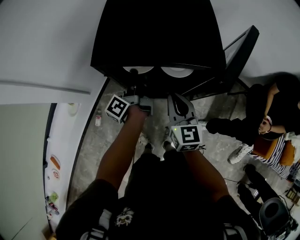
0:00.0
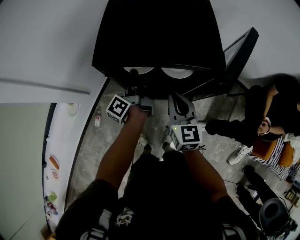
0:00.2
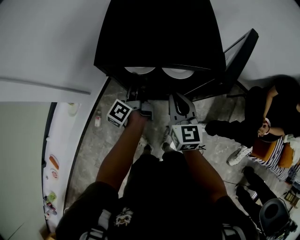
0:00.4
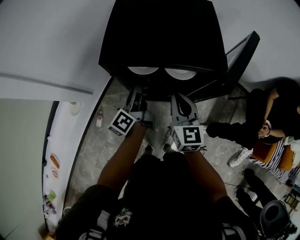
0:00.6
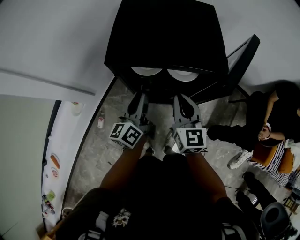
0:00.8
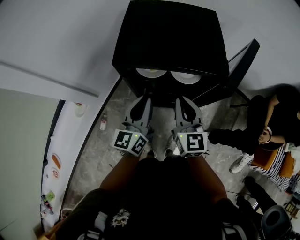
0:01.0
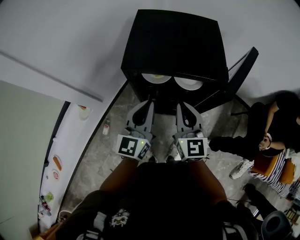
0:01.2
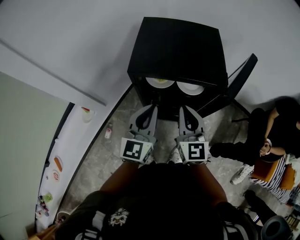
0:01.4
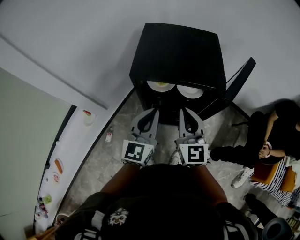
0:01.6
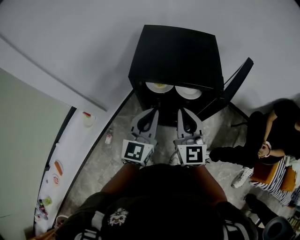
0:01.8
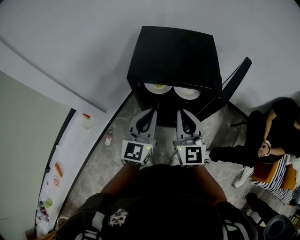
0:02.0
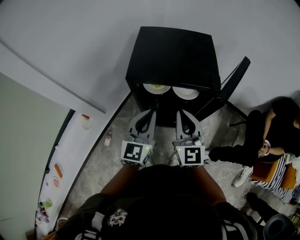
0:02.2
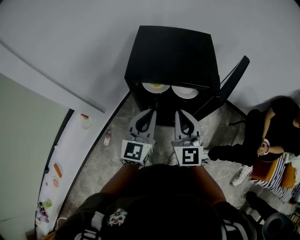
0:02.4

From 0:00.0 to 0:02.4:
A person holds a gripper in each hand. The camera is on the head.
From 0:00.0 to 0:01.2: The left gripper shifts about 20 cm upward and backward, rolls clockwise, seen from behind, by about 70 degrees, and opens, then closes once more, while the right gripper moves upward, roughly 10 cm.
From 0:01.2 to 0:02.4: The right gripper moves upward, roughly 5 cm.

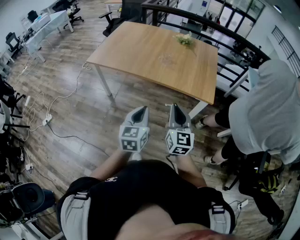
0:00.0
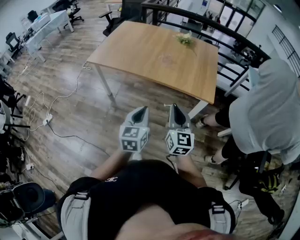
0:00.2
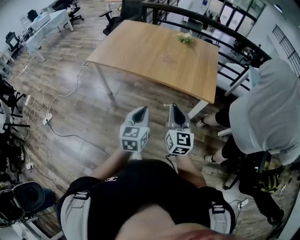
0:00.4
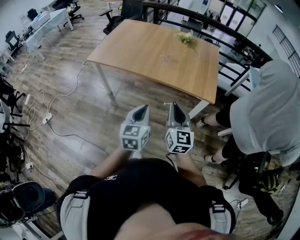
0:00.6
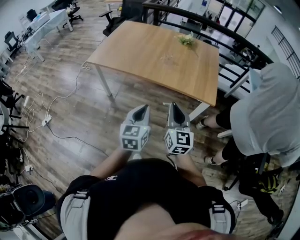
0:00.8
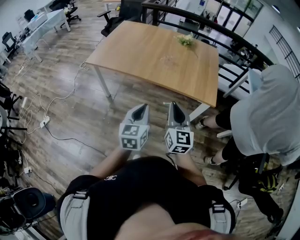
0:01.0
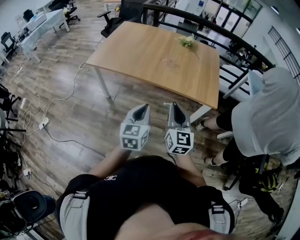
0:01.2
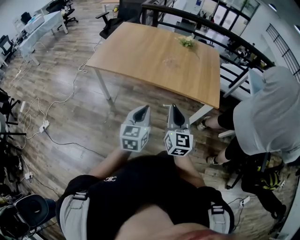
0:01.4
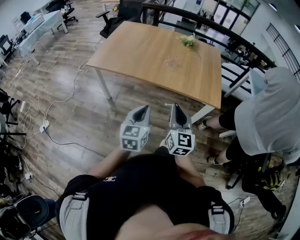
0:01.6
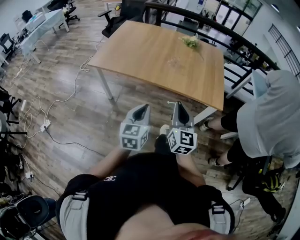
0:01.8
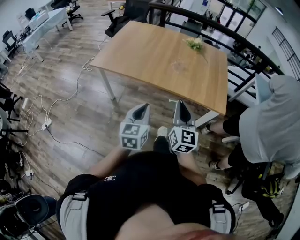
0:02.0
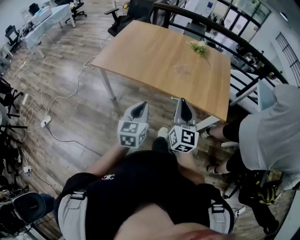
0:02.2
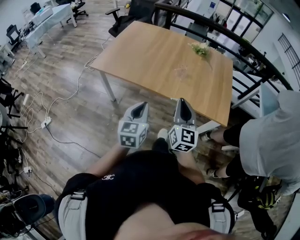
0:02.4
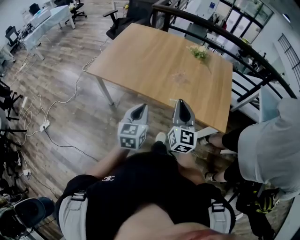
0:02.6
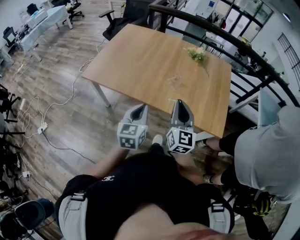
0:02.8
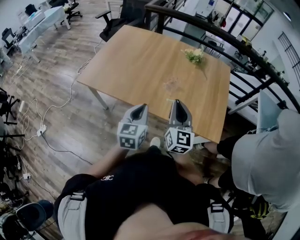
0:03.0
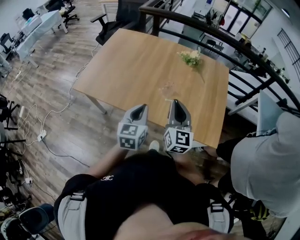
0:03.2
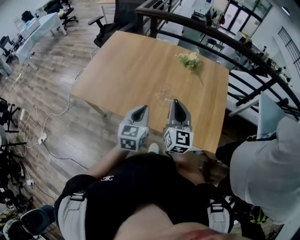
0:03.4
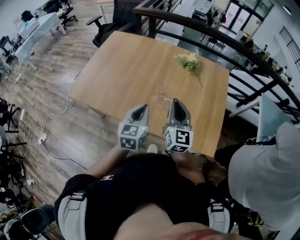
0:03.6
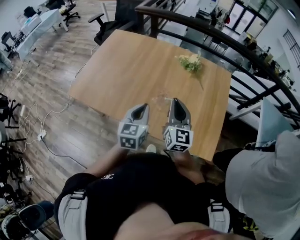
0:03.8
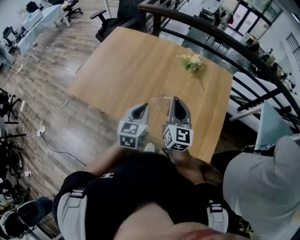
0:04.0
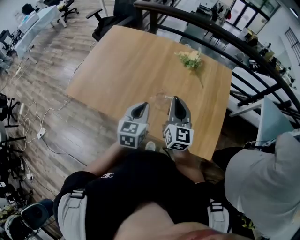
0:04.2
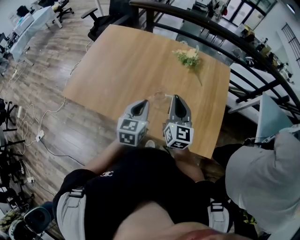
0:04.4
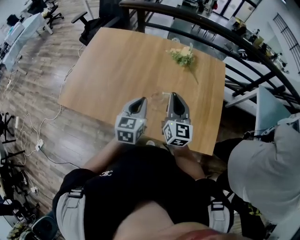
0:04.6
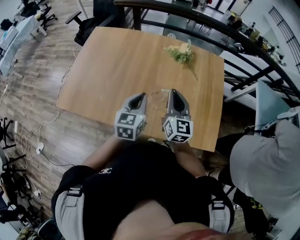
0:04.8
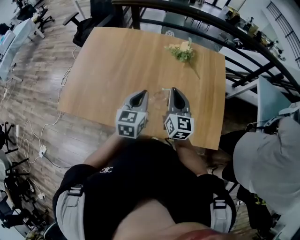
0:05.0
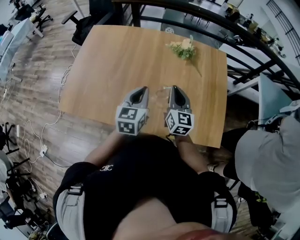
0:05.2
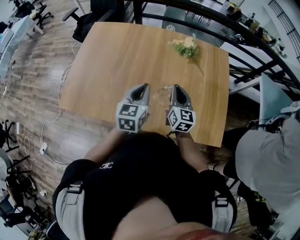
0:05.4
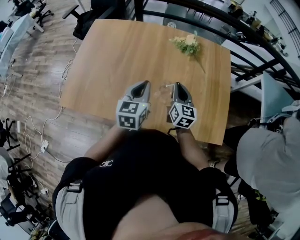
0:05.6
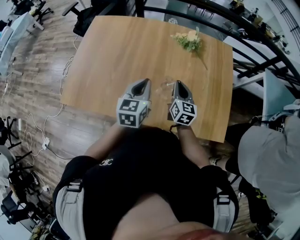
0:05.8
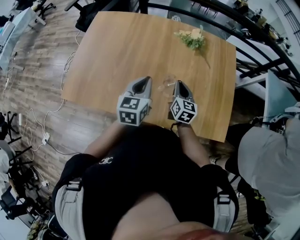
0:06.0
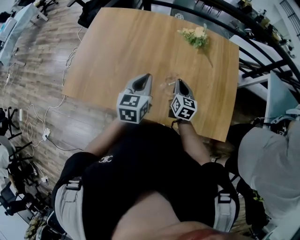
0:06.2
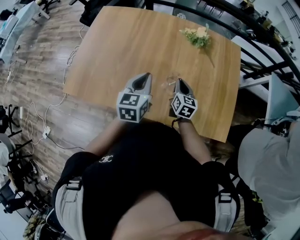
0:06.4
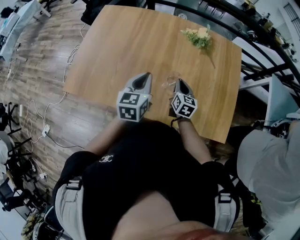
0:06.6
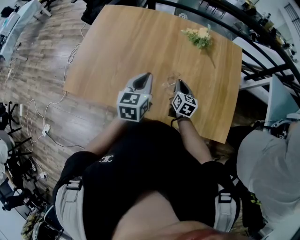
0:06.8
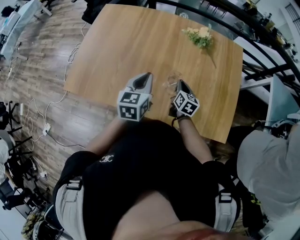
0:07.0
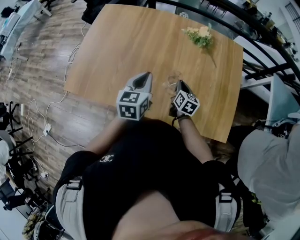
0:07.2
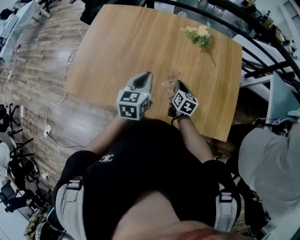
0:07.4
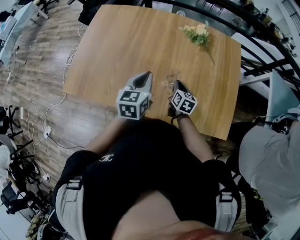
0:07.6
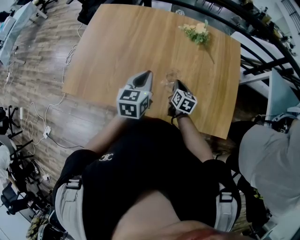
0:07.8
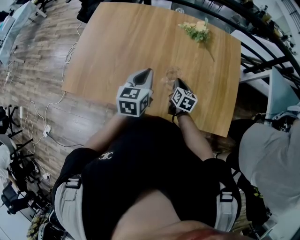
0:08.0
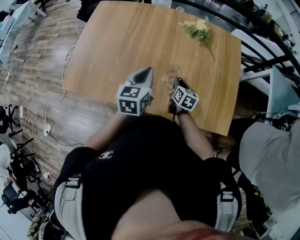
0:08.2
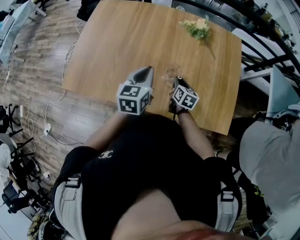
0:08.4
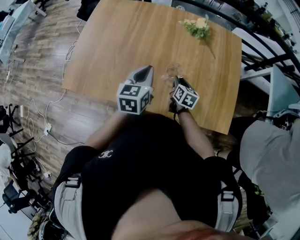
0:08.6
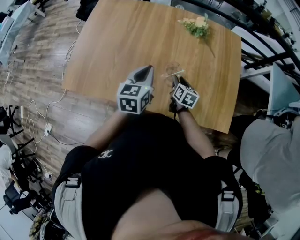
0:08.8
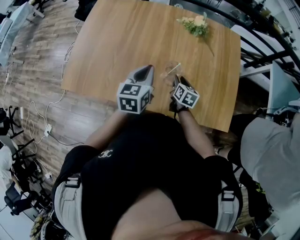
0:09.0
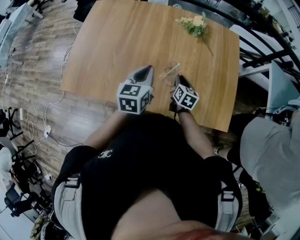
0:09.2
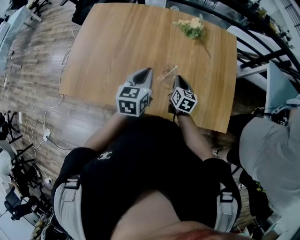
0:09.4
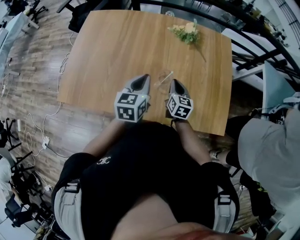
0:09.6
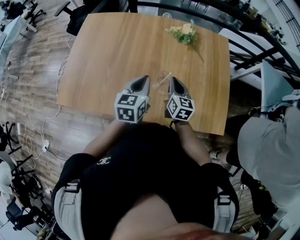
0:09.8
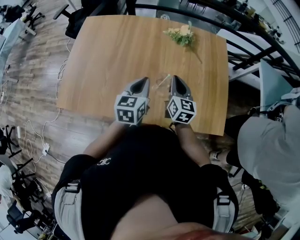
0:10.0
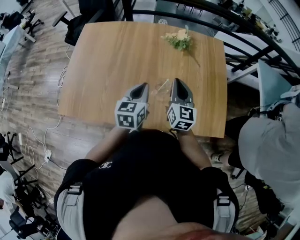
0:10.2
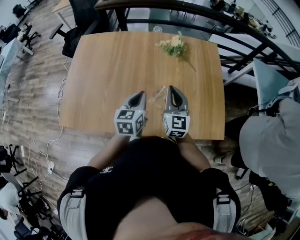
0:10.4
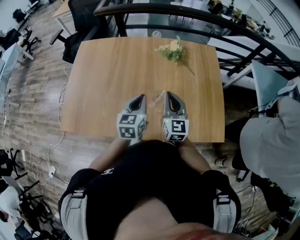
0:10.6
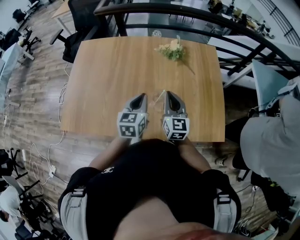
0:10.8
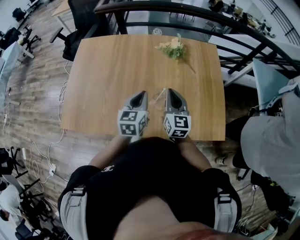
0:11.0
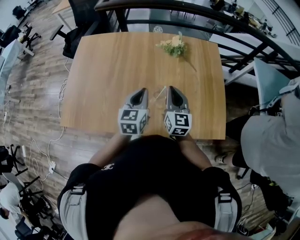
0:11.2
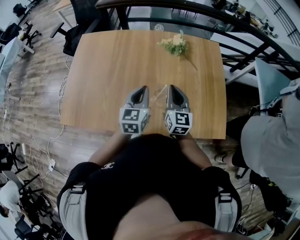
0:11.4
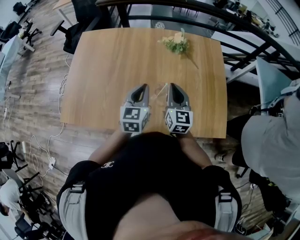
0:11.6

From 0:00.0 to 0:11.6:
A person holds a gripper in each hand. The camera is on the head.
From 0:00.0 to 0:01.4: The right gripper shifts some 10 cm to the left. Meanwhile the left gripper heads to the left and forward, covering roughly 10 cm.
From 0:01.4 to 0:02.8: The two grippers go about 25 cm forward.
From 0:02.8 to 0:04.4: The right gripper heads forward, covering some 25 cm, while the left gripper goes some 25 cm forward and to the right.
From 0:04.4 to 0:05.8: The left gripper shifts some 10 cm forward and to the left, while the right gripper goes some 15 cm downward and forward.
From 0:05.8 to 0:07.2: The right gripper shifts some 10 cm downward.
From 0:07.2 to 0:08.8: The right gripper opens.
From 0:08.8 to 0:10.2: The right gripper travels upward by approximately 20 cm, swivels some 40 degrees, and closes up.
From 0:10.2 to 0:11.6: There are only small adjustments of the grippers.

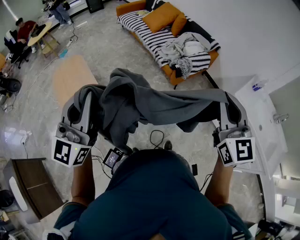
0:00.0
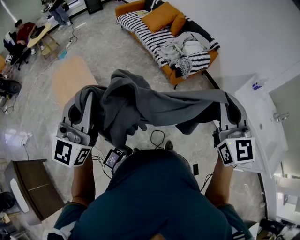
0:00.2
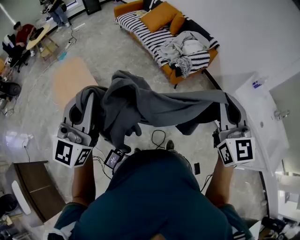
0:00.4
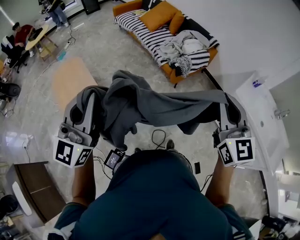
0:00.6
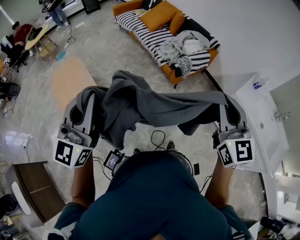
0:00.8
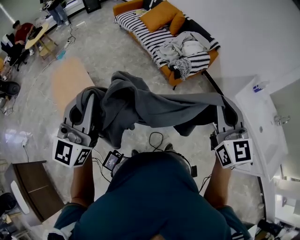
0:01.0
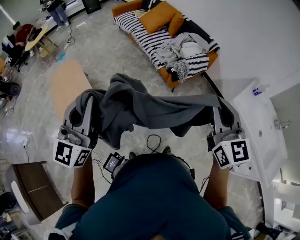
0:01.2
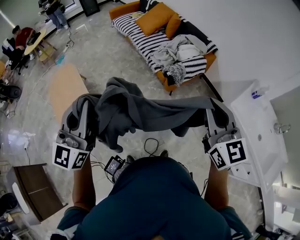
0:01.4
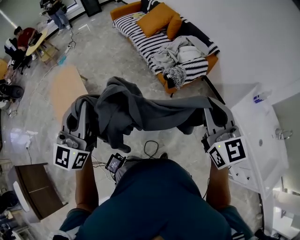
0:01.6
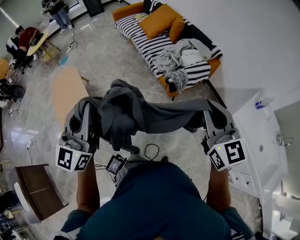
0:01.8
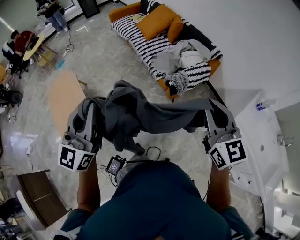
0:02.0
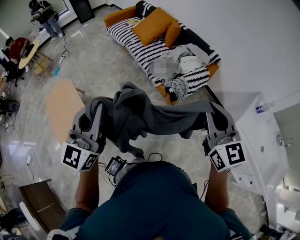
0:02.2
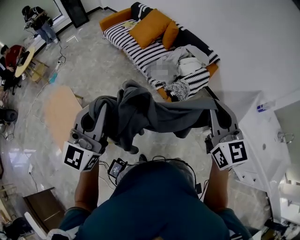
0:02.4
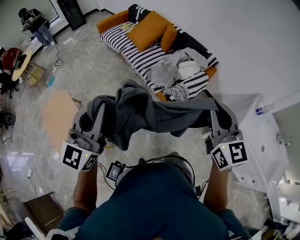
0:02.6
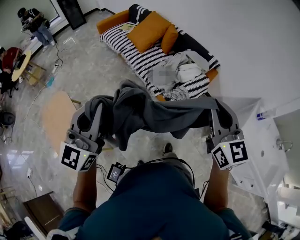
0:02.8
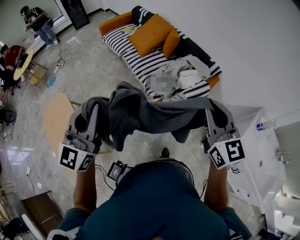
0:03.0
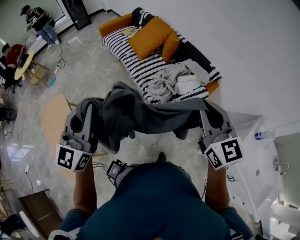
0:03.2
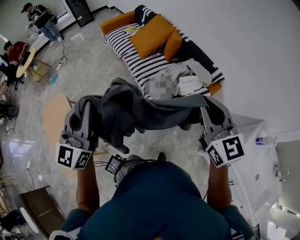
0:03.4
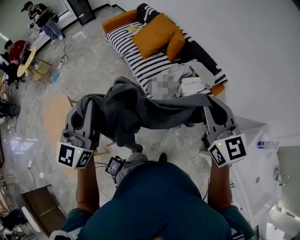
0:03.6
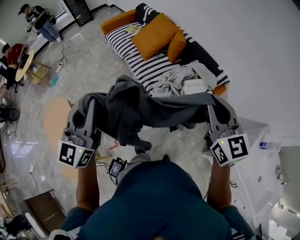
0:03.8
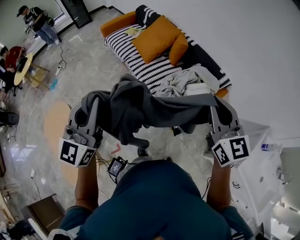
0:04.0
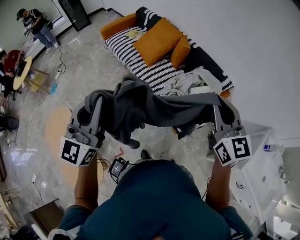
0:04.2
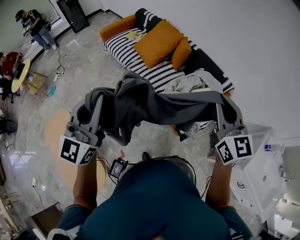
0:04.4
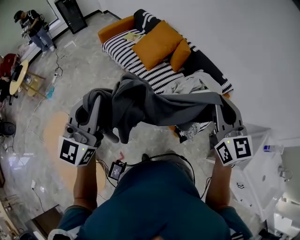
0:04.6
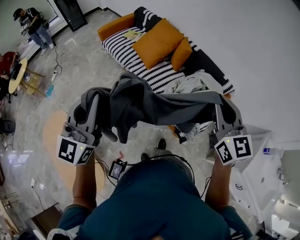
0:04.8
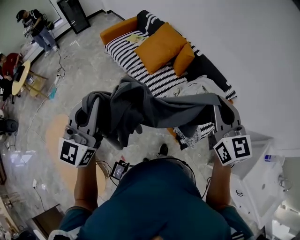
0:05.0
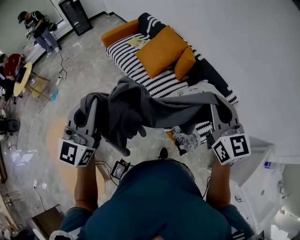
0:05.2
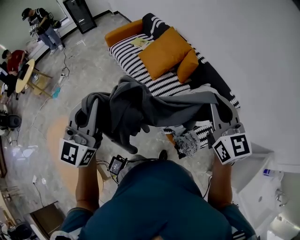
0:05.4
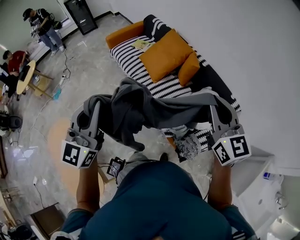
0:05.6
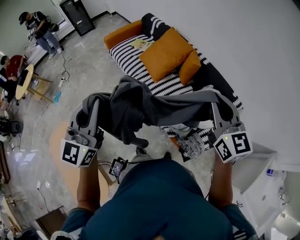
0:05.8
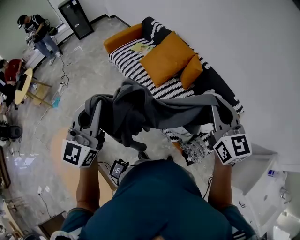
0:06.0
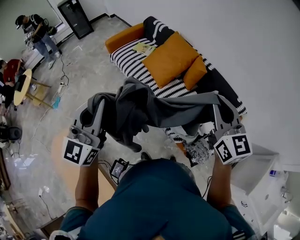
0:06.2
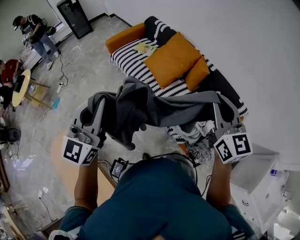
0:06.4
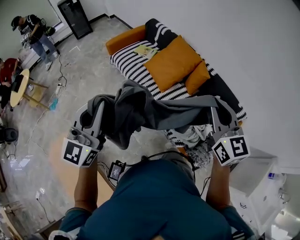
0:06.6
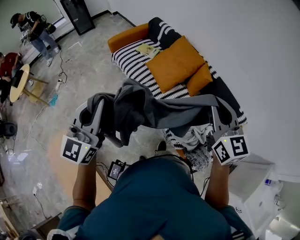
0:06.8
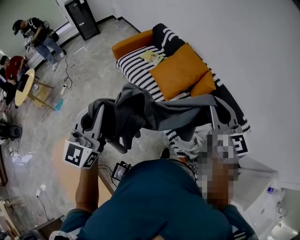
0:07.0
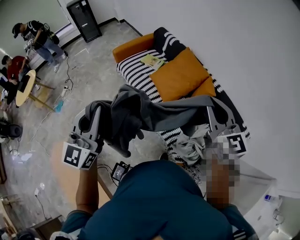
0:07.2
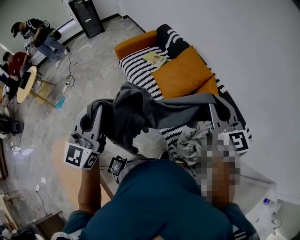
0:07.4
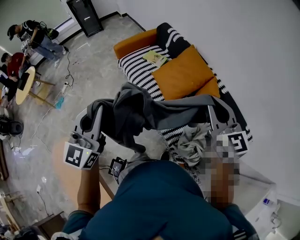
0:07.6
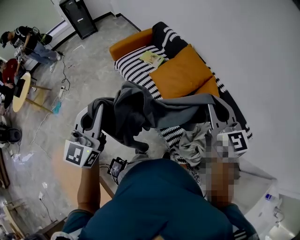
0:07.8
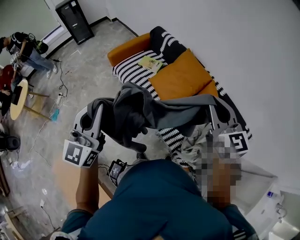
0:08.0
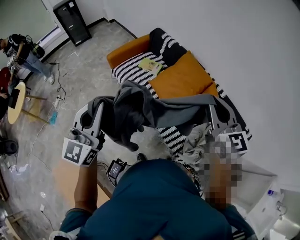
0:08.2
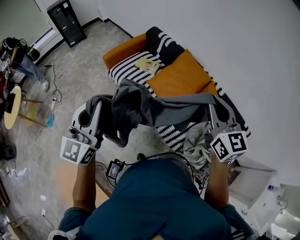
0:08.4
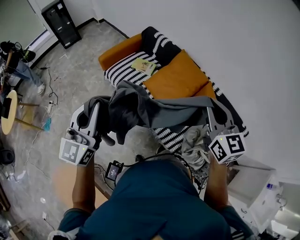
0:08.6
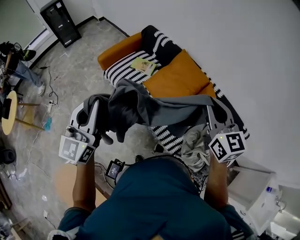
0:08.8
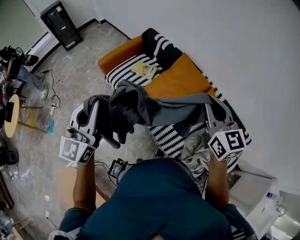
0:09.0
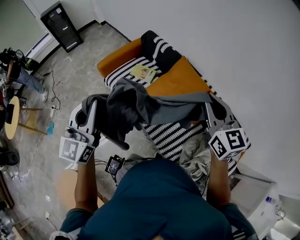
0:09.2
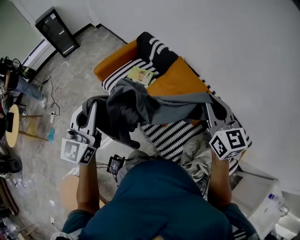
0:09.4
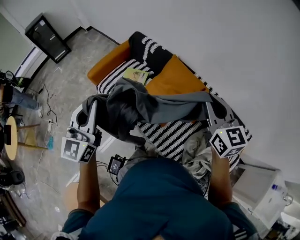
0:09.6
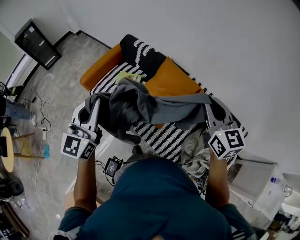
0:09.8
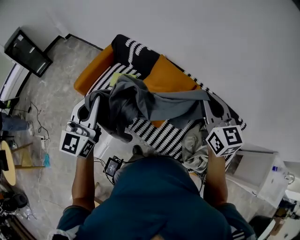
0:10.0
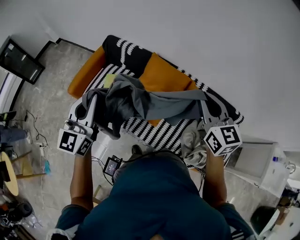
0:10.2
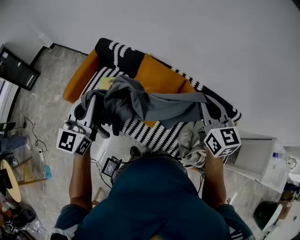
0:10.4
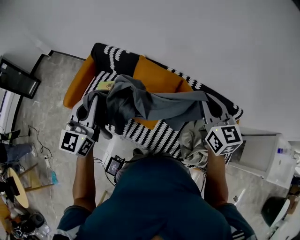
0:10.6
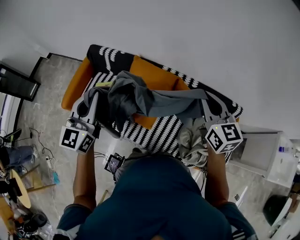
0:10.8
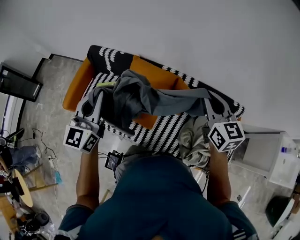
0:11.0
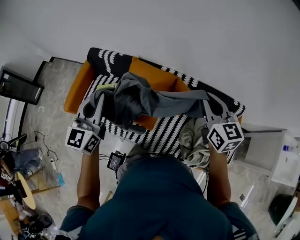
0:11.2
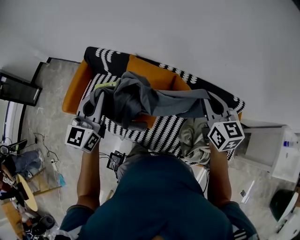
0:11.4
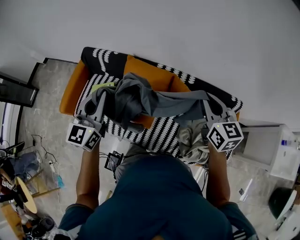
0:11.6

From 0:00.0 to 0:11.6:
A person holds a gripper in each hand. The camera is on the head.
From 0:00.0 to 0:01.4: Both grippers travel together forward and to the right, about 15 cm.
From 0:01.4 to 0:02.8: The grippers both shift forward by roughly 30 cm.
From 0:02.8 to 0:04.4: The grippers both shift forward by some 30 cm.
From 0:04.4 to 0:05.8: Both grippers travel together forward, about 20 cm.
From 0:05.8 to 0:07.2: The two grippers go some 20 cm forward and to the left.
From 0:07.2 to 0:08.8: The two grippers go about 20 cm forward and to the left.
From 0:08.8 to 0:10.2: The left gripper shifts about 25 cm forward; the right gripper heads forward, covering approximately 15 cm.
From 0:10.2 to 0:11.6: The right gripper travels to the right and downward by some 20 cm. Meanwhile the left gripper goes some 20 cm to the right and forward.
